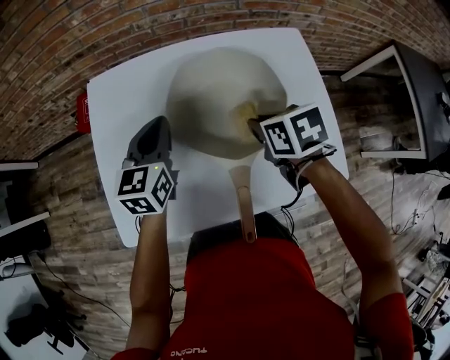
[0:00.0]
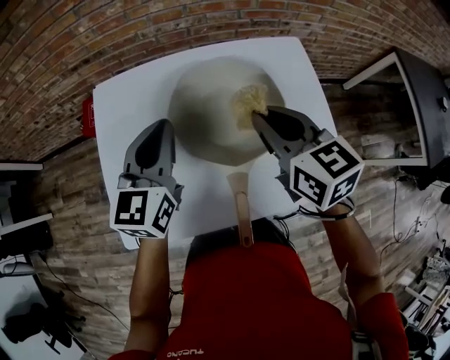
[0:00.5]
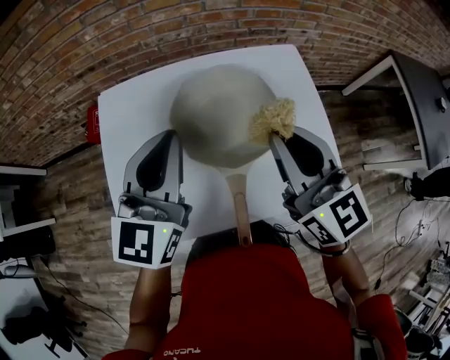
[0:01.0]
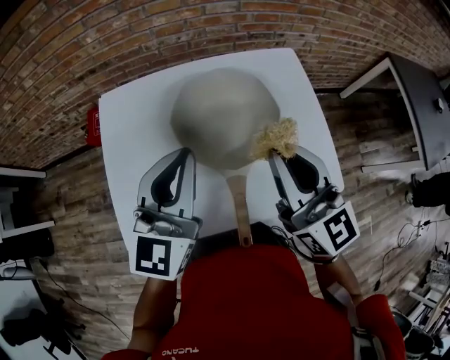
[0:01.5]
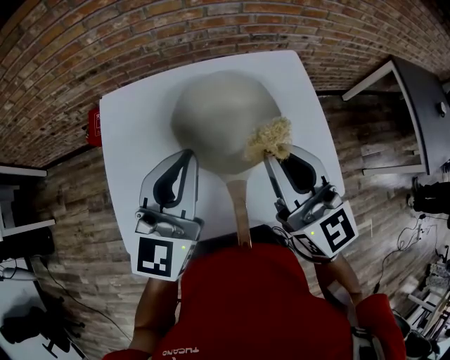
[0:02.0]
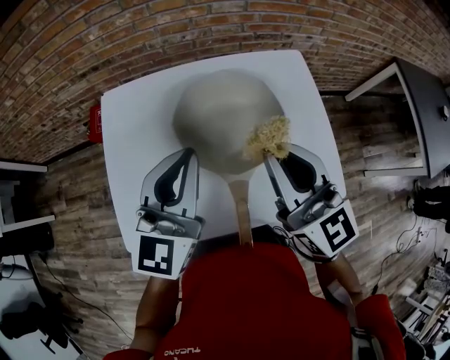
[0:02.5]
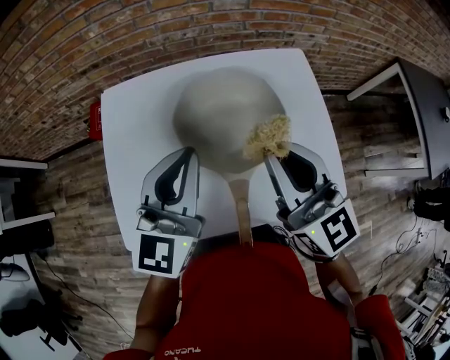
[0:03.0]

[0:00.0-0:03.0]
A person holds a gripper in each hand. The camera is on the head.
0:00.0 to 0:01.5: Both grippers move upward and backward, approximately 20 cm. The left gripper changes its angle by approximately 30 degrees. The right gripper points its fingers roughly 60 degrees further upward.
0:01.5 to 0:03.0: There are only small adjustments of the grippers.

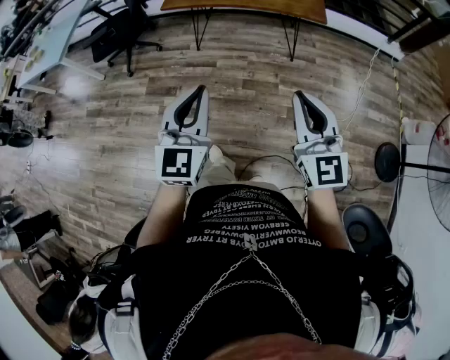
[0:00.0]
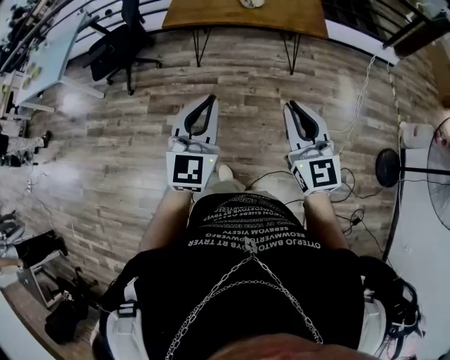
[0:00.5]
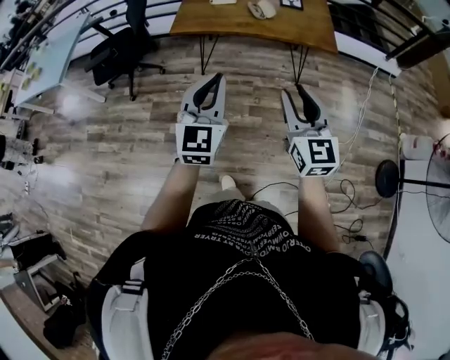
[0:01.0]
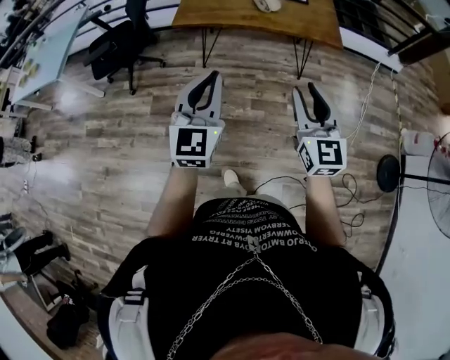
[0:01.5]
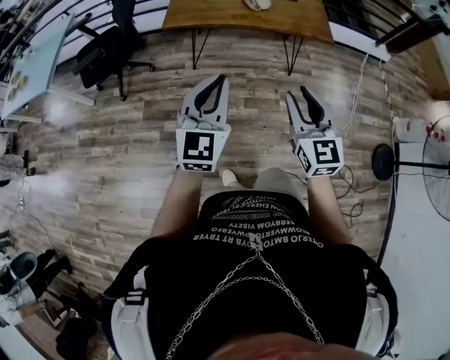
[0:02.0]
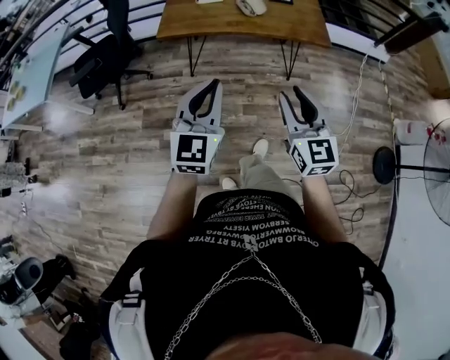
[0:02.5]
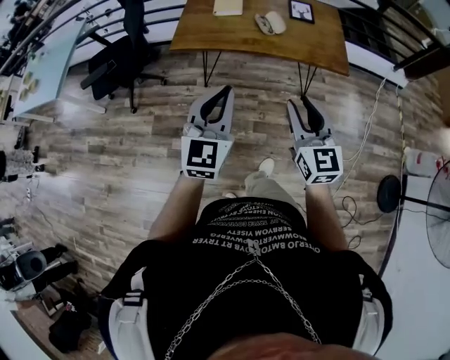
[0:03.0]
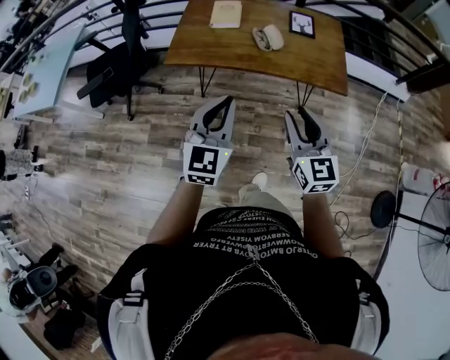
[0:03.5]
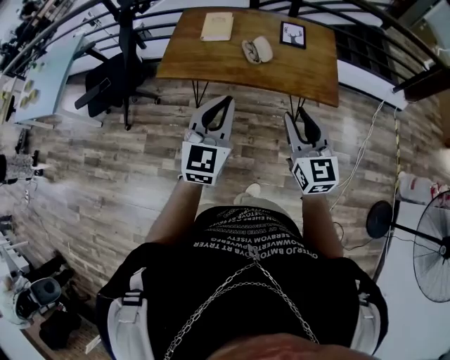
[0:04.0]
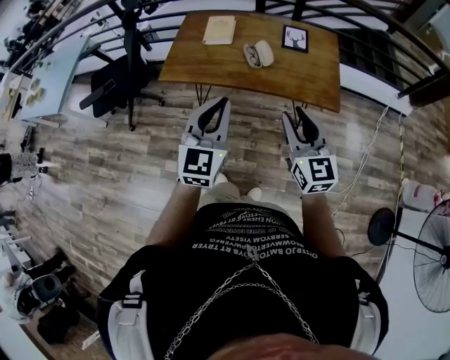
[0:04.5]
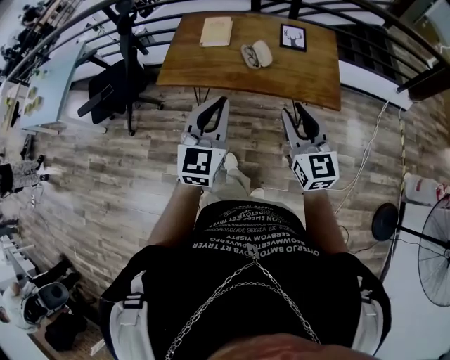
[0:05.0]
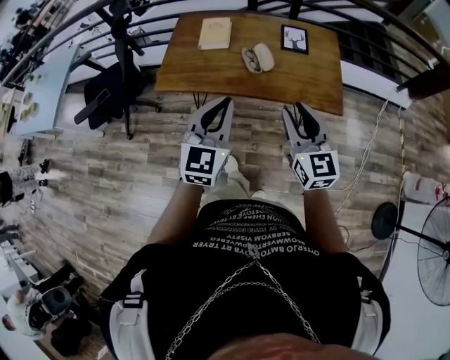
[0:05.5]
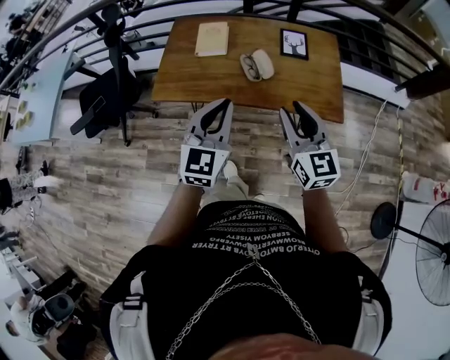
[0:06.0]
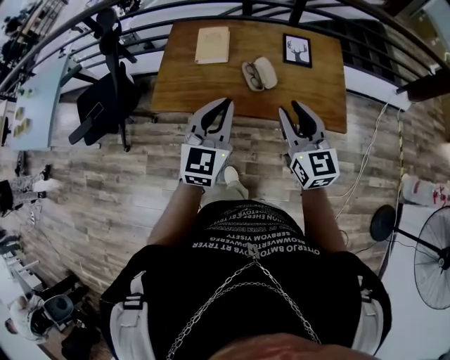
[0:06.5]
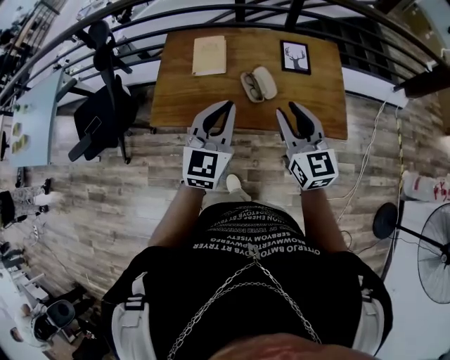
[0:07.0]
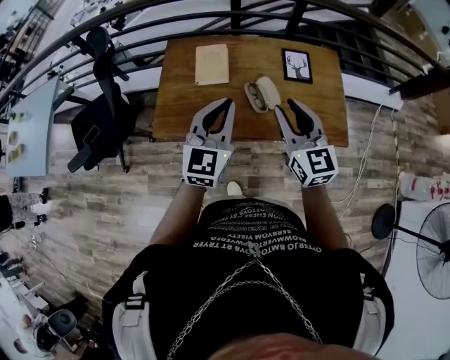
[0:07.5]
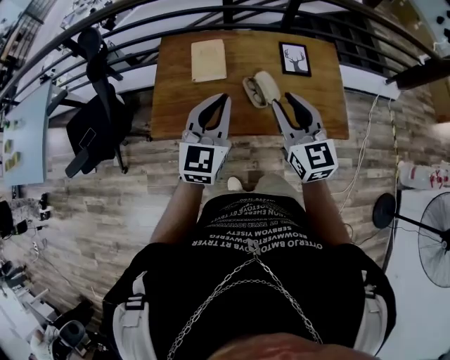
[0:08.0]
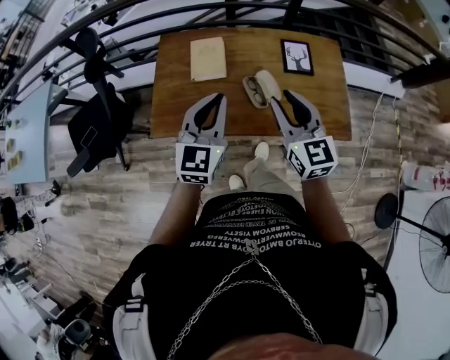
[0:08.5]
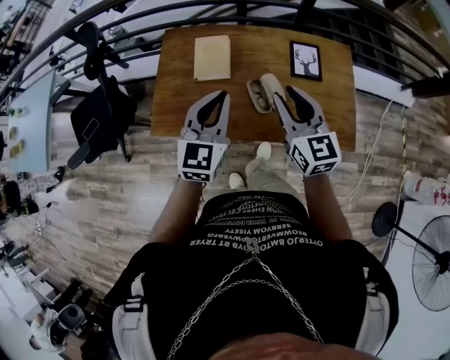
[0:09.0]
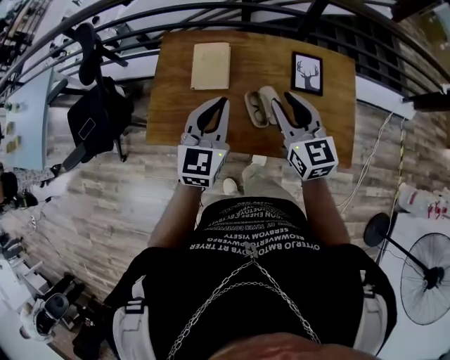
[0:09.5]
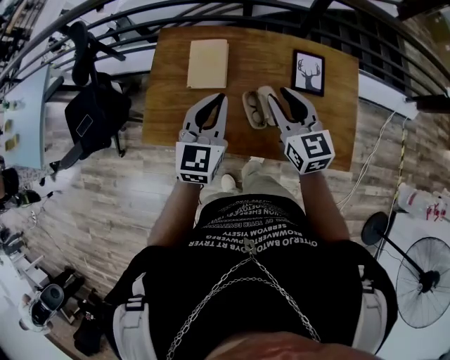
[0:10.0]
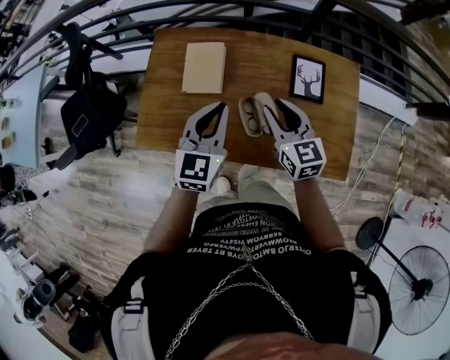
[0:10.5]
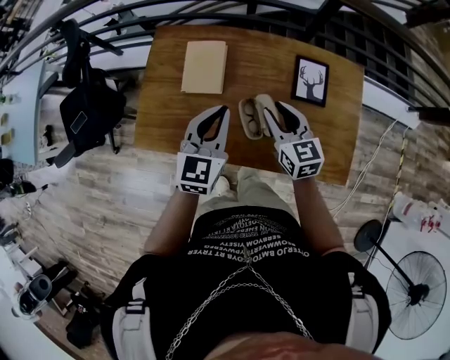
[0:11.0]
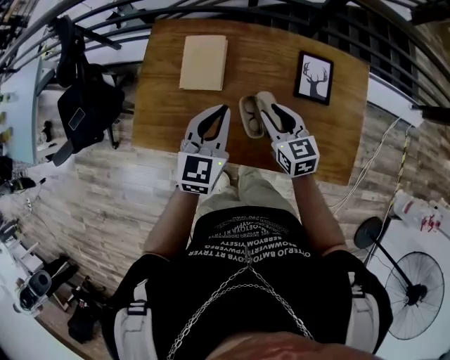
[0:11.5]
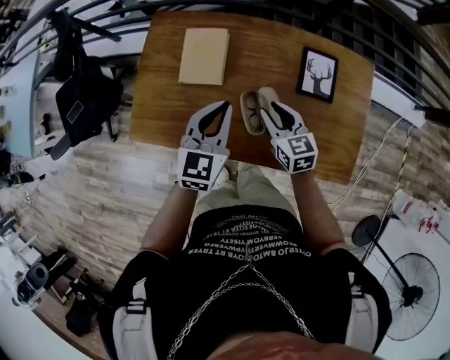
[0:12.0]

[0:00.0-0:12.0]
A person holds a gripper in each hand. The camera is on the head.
0:00.0 to 0:02.0: Both grippers travel together forward and to the left, about 20 cm. The right gripper opens.
0:02.0 to 0:04.0: Both grippers move forward and to the right, about 30 cm.
0:04.0 to 0:06.0: The two grippers go about 15 cm forward.
0:06.0 to 0:08.0: The right gripper heads forward and to the left, covering about 20 cm. Meanwhile the left gripper is displaced forward by some 15 cm.
0:08.0 to 0:10.0: Both grippers move forward and downward, some 15 cm.
0:10.0 to 0:12.0: The right gripper goes about 15 cm downward. Meanwhile the left gripper is displaced downward by about 10 cm.

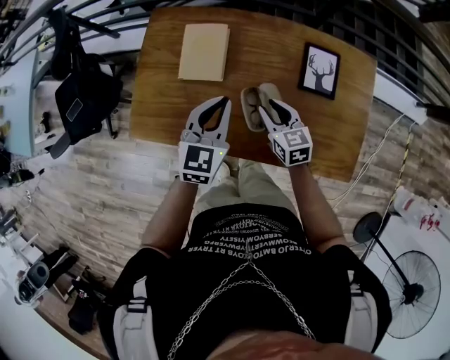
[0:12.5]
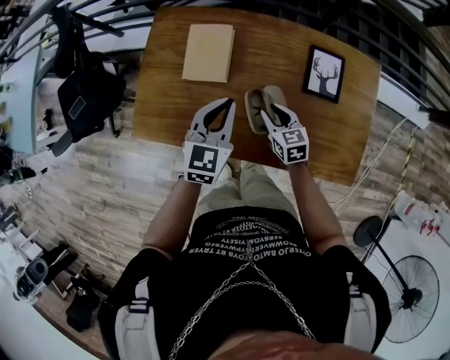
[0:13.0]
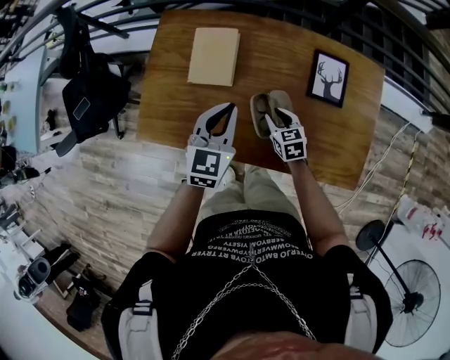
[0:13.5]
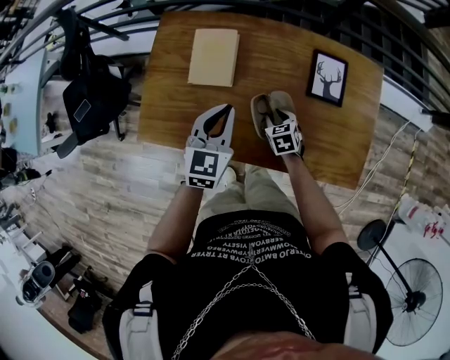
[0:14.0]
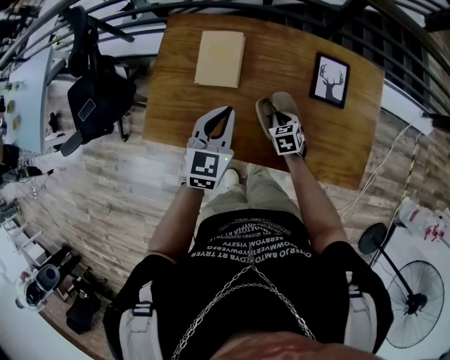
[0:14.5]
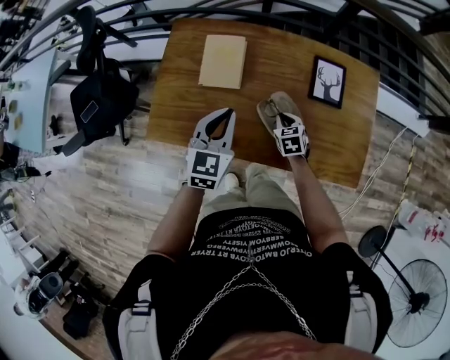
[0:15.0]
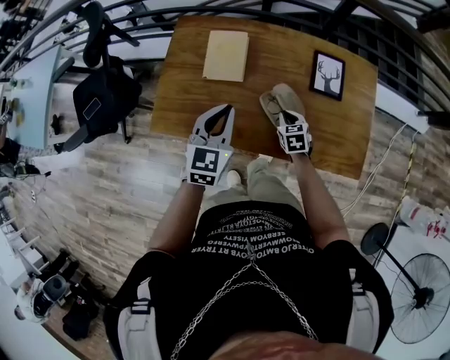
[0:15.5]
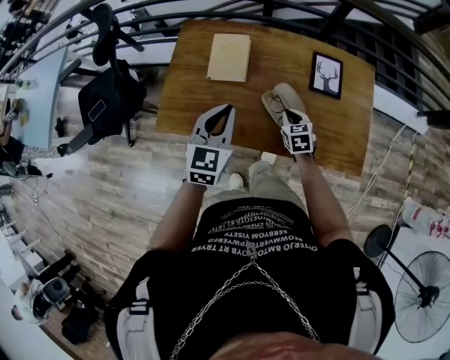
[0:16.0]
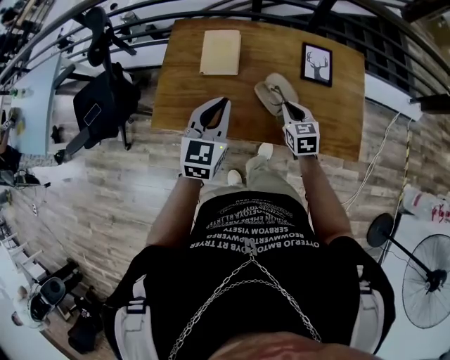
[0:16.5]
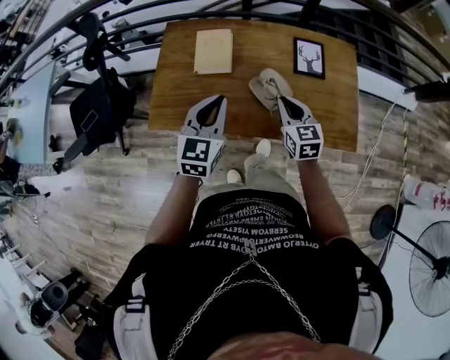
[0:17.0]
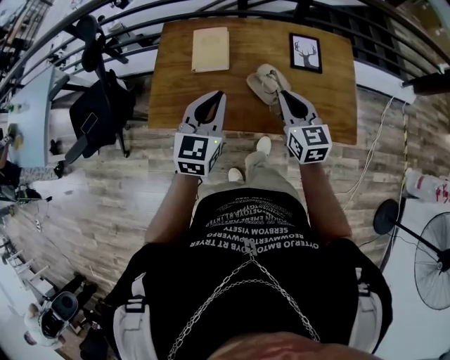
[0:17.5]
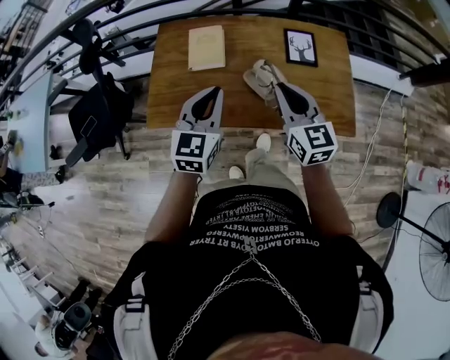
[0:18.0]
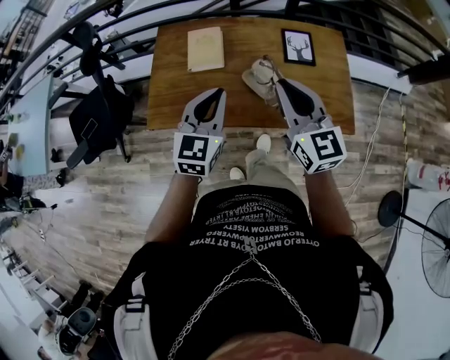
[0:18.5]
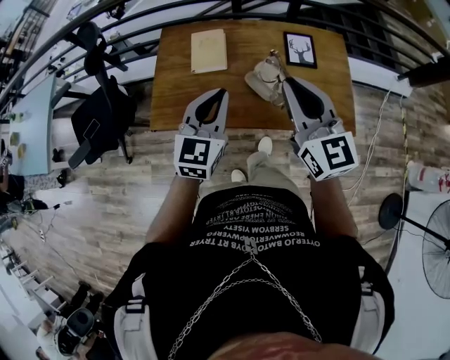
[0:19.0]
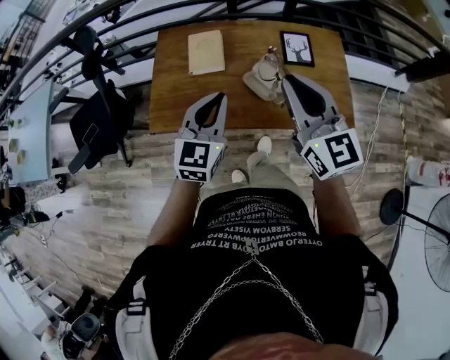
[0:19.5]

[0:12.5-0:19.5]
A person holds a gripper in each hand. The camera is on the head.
0:12.5 to 0:14.5: The right gripper heads downward, covering some 10 cm, rotates about 30 degrees, and closes up.
0:14.5 to 0:16.0: The left gripper is displaced backward and upward by approximately 10 cm; the right gripper shifts roughly 10 cm upward.
0:16.0 to 0:17.5: The right gripper is displaced upward by roughly 20 cm, and rotates approximately 30 degrees, while the left gripper moves roughly 5 cm.
0:17.5 to 0:19.5: The right gripper is displaced upward by some 20 cm.

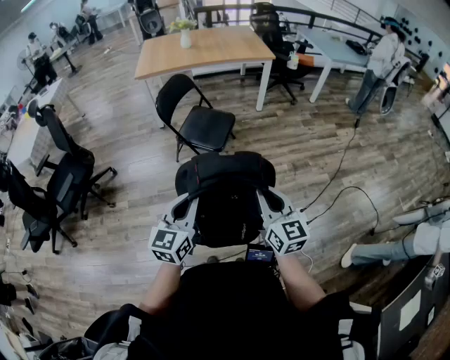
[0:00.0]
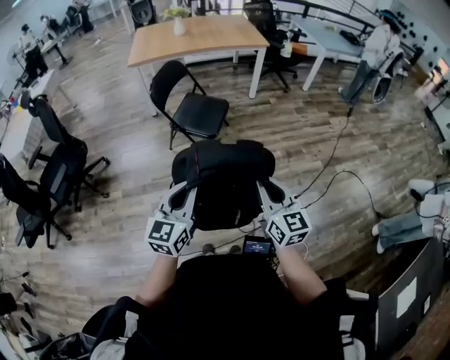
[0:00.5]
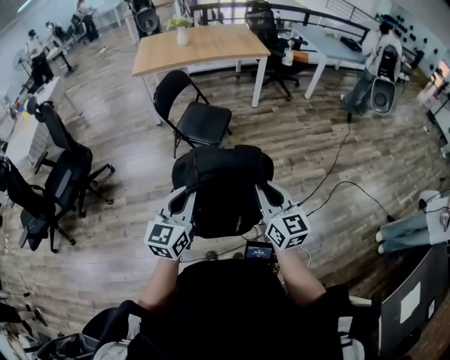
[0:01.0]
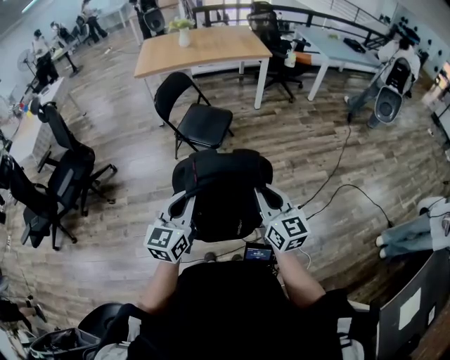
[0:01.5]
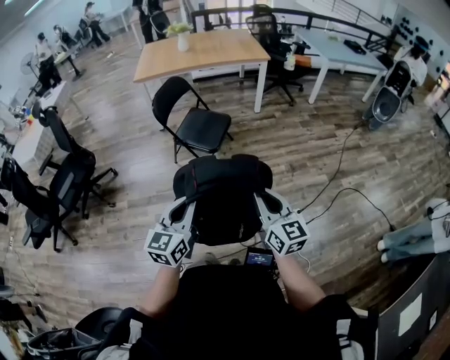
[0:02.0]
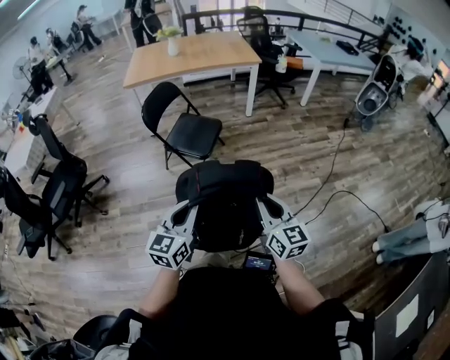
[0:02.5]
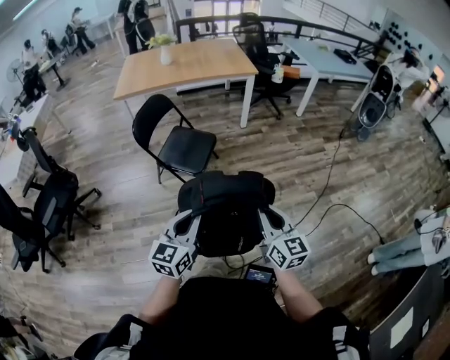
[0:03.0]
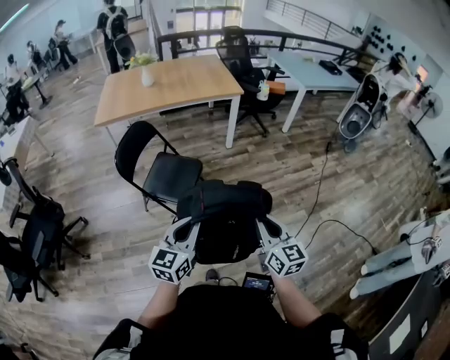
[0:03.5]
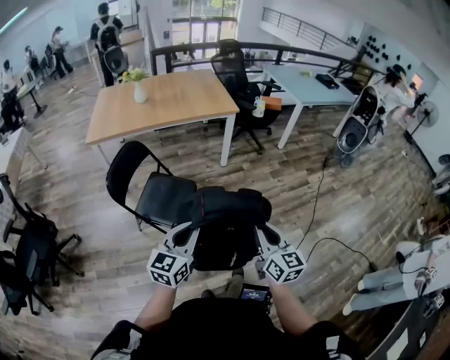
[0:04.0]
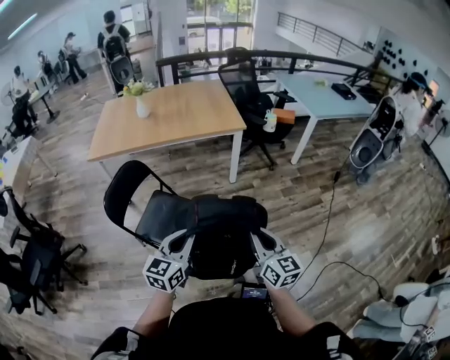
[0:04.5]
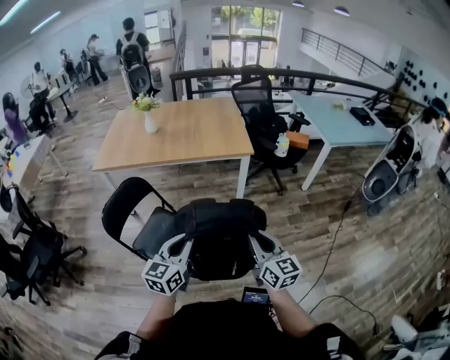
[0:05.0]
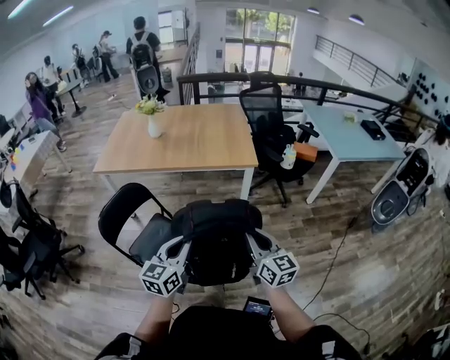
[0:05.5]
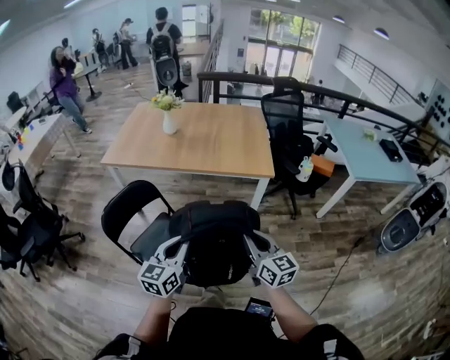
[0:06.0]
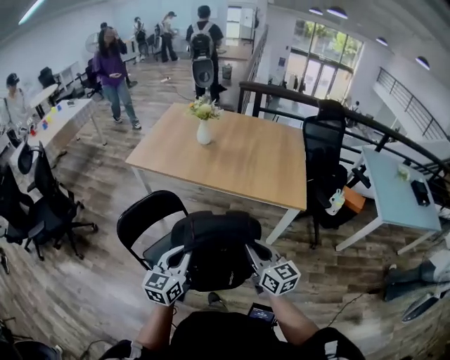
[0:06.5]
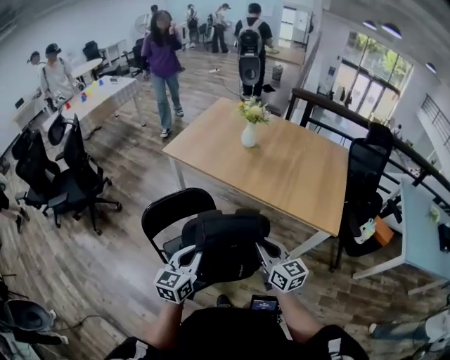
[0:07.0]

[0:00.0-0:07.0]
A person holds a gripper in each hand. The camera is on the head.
0:00.0 to 0:02.0: The right gripper moves about 5 cm. Meanwhile the left gripper changes place by about 5 cm.
0:02.0 to 0:03.5: Both grippers move forward, approximately 25 cm.
0:03.5 to 0:05.0: The grippers both shift forward by about 35 cm.
0:05.0 to 0:07.0: The right gripper shifts by roughly 40 cm, and rotates some 40 degrees; the left gripper changes place by roughly 30 cm, and turns by some 40 degrees.
